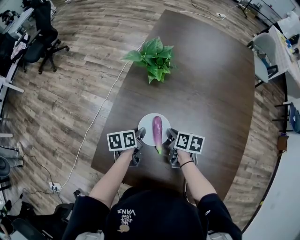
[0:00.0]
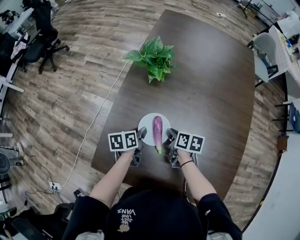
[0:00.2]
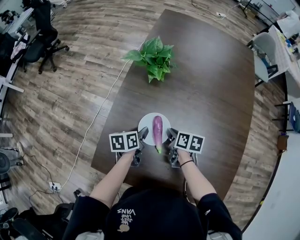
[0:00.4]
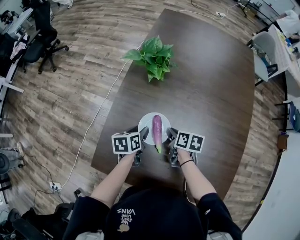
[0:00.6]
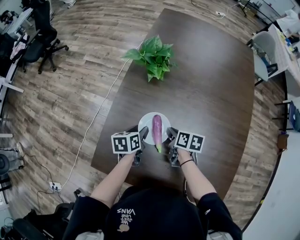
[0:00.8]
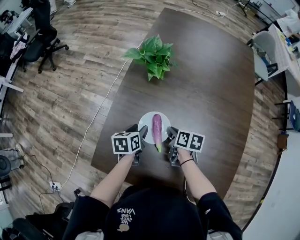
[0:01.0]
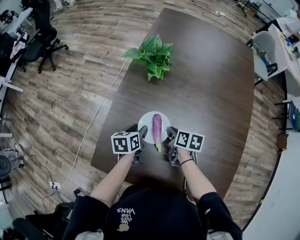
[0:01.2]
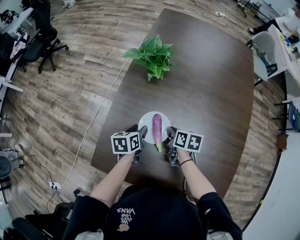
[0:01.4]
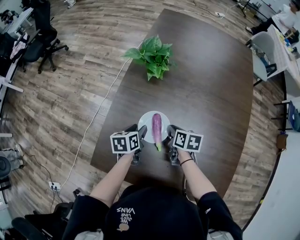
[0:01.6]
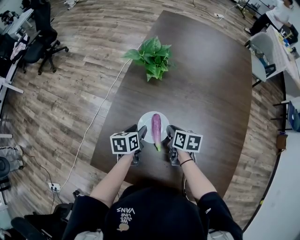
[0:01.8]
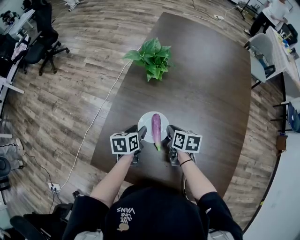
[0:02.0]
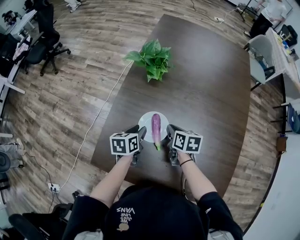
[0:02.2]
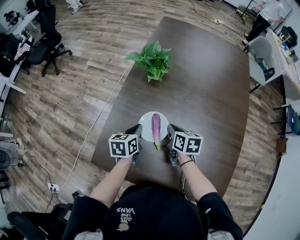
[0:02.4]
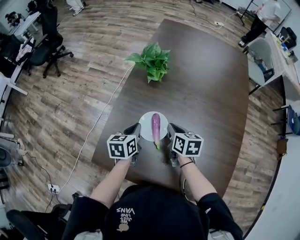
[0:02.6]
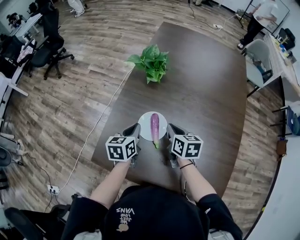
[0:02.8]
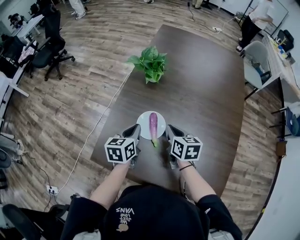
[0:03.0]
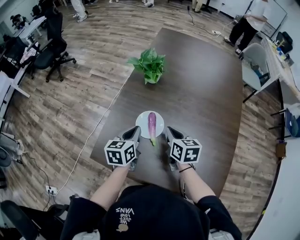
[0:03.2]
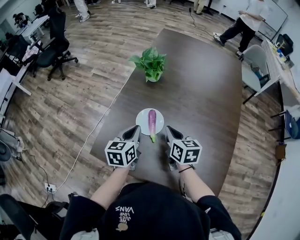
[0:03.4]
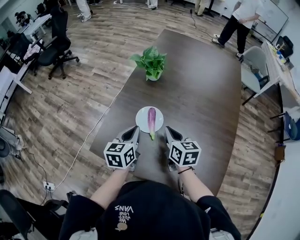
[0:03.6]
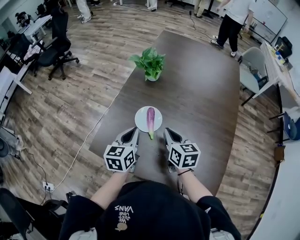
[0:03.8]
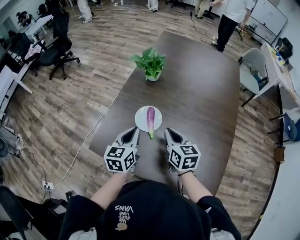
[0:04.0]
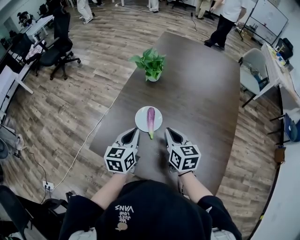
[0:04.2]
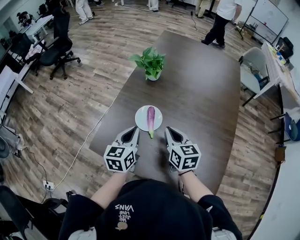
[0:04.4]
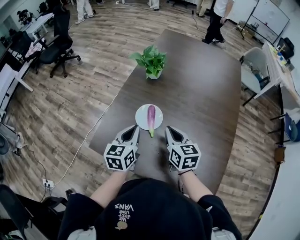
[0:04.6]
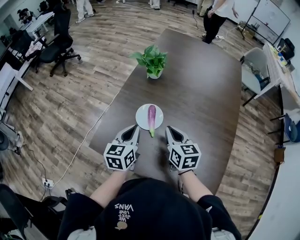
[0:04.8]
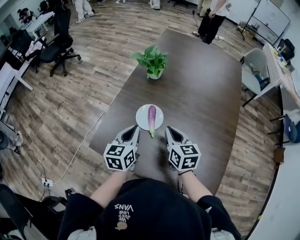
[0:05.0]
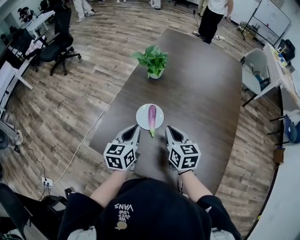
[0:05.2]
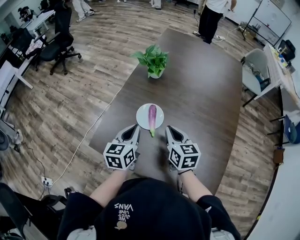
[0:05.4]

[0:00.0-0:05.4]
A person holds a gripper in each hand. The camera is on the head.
0:00.0 to 0:01.4: The left gripper opens.
0:01.4 to 0:02.8: The grippers both shift upward by some 10 cm. The right gripper changes its angle by some 20 degrees. Meanwhile the left gripper closes its fingers.
0:02.8 to 0:04.0: The grippers both shift backward and upward by roughly 10 cm.
0:04.0 to 0:05.4: Both grippers stay about where they are.

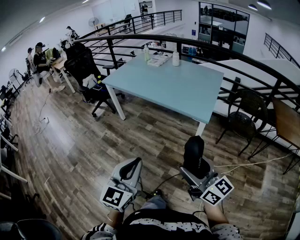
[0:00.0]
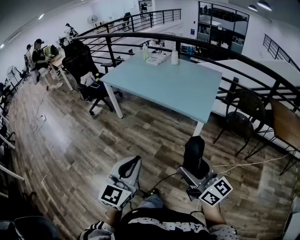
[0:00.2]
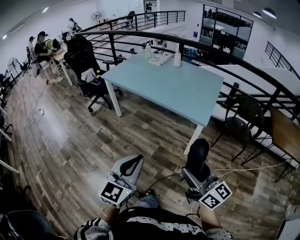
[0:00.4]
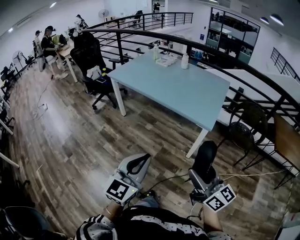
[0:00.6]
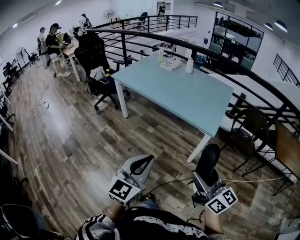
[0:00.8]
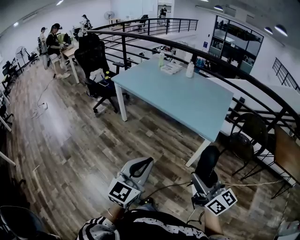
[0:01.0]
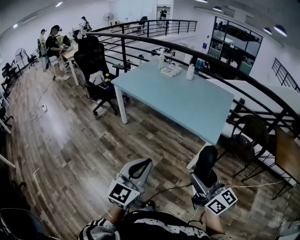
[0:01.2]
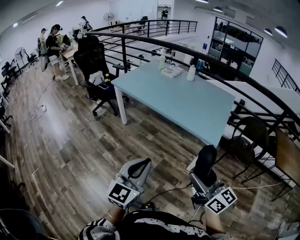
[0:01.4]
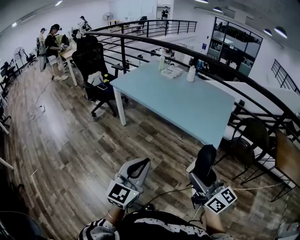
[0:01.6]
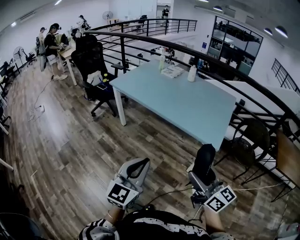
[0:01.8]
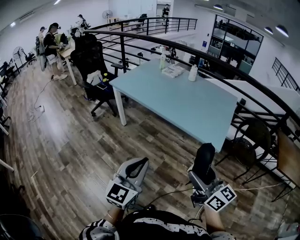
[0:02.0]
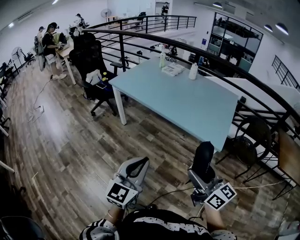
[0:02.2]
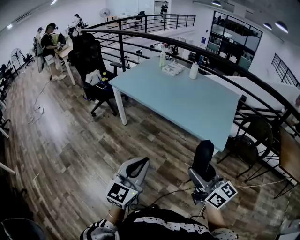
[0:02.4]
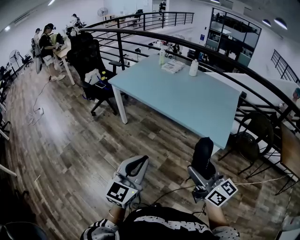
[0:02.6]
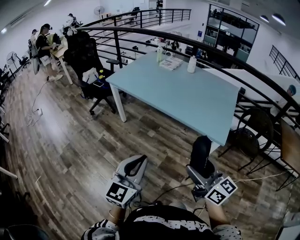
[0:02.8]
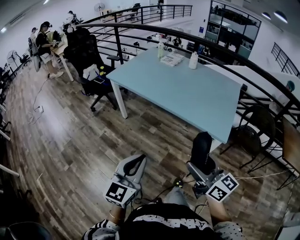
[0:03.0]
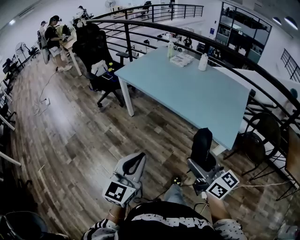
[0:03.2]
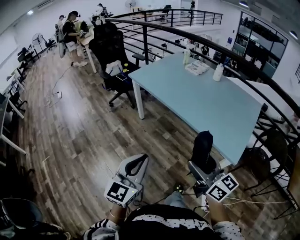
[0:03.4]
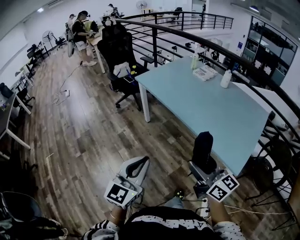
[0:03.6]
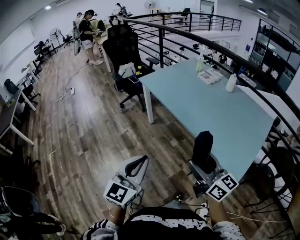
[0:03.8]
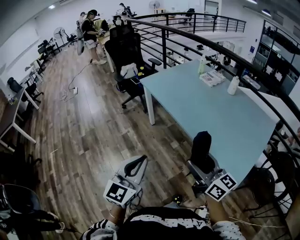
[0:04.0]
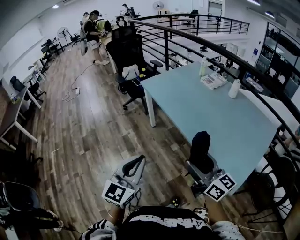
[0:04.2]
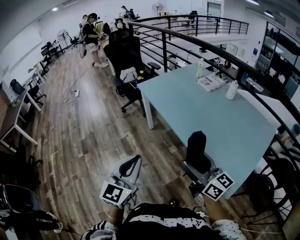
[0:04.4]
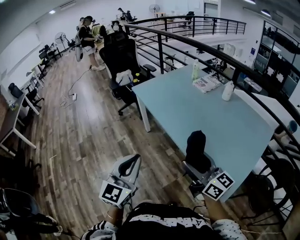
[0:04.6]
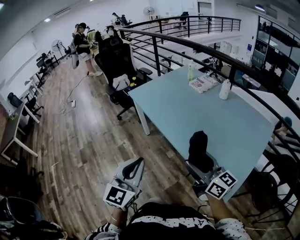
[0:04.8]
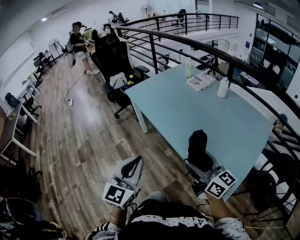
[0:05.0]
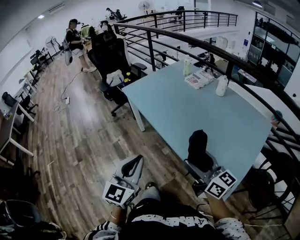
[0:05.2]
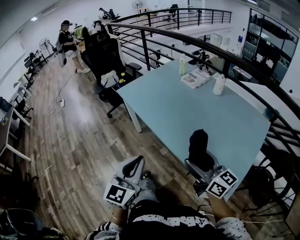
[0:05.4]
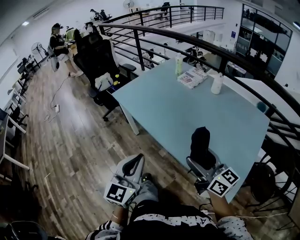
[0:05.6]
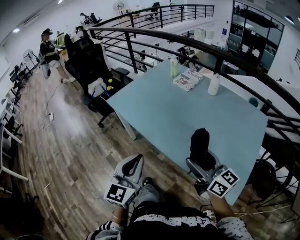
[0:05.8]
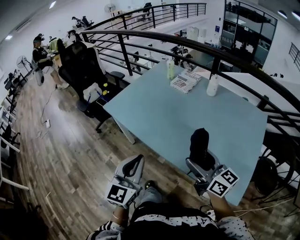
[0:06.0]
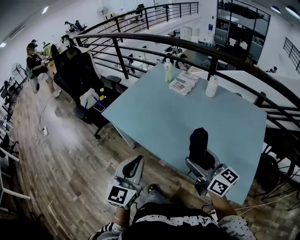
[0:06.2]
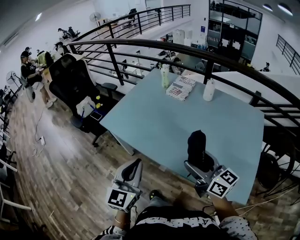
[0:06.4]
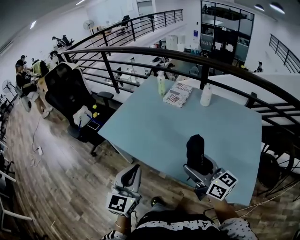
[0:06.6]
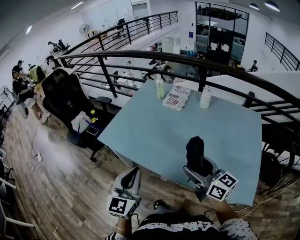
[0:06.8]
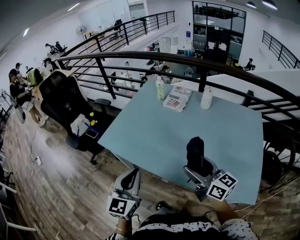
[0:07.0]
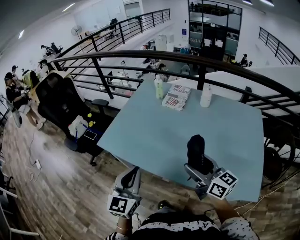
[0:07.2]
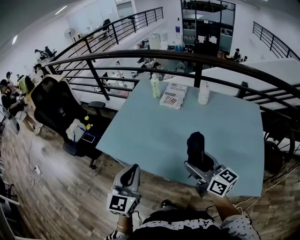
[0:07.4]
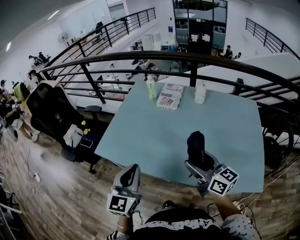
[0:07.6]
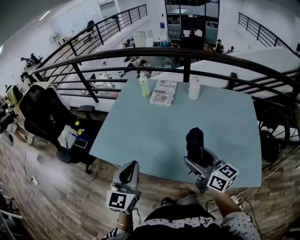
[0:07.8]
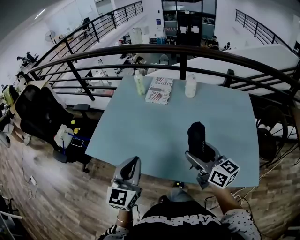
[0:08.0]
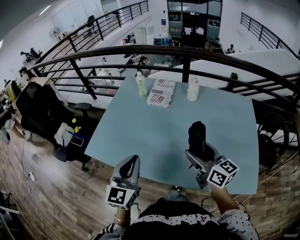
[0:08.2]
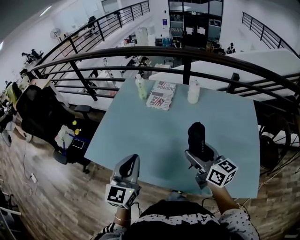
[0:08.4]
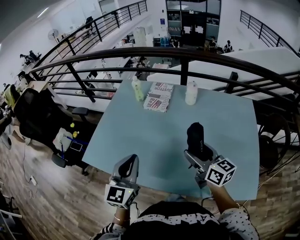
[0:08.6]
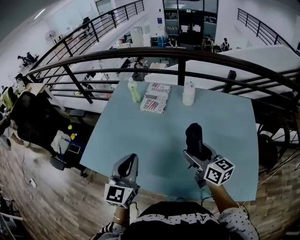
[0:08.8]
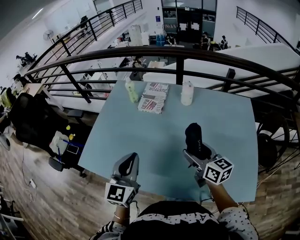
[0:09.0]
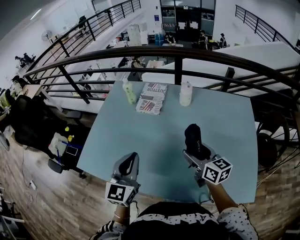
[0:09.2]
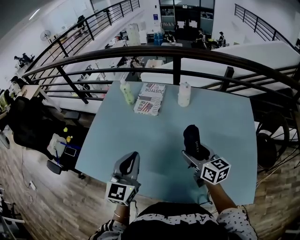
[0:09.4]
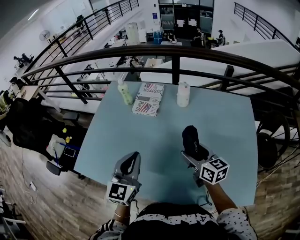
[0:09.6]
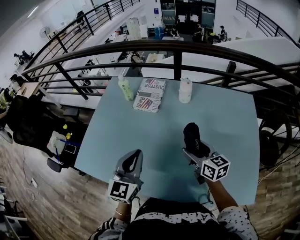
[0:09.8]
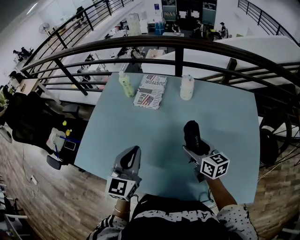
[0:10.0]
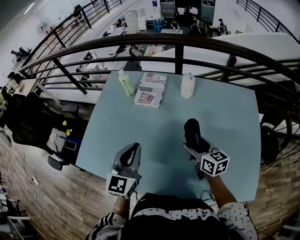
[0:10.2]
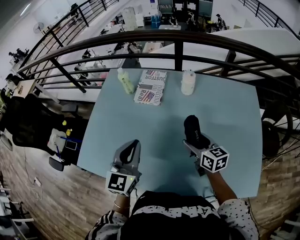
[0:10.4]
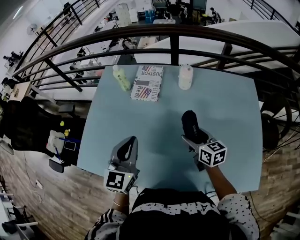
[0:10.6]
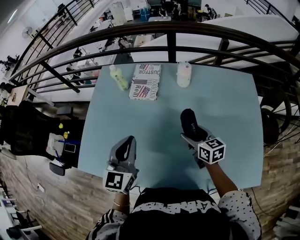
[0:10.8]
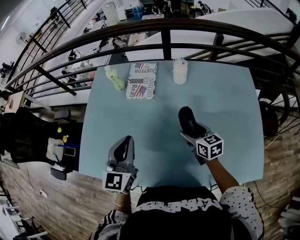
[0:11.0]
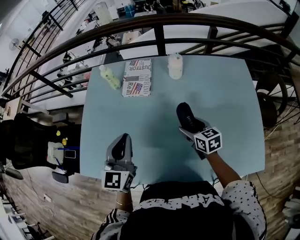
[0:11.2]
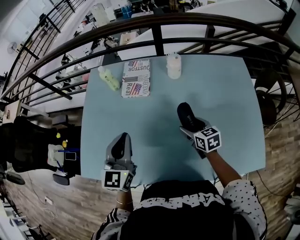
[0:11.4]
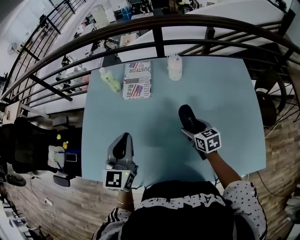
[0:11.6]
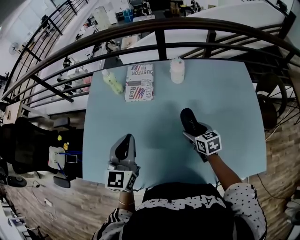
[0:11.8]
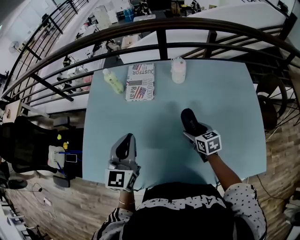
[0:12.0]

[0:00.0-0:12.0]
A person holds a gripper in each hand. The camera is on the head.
0:00.0 to 0:01.6: The two grippers go approximately 15 cm forward and to the left.
0:01.6 to 0:03.0: The grippers both shift forward and to the left by approximately 10 cm.
0:03.0 to 0:04.4: The left gripper ends up some 20 cm from where it was, and turns by roughly 30 degrees, while the right gripper moves approximately 25 cm, and changes its angle by some 30 degrees.
0:04.4 to 0:06.0: The two grippers go roughly 25 cm forward.
0:06.0 to 0:07.6: Both grippers travel together forward and to the left, roughly 20 cm.
0:07.6 to 0:09.0: The left gripper shifts about 20 cm forward and to the right. The right gripper goes roughly 20 cm forward, to the right and downward.
0:09.0 to 0:10.4: The right gripper is displaced downward and forward by some 10 cm; the left gripper heads forward, covering some 10 cm.
0:10.4 to 0:12.0: The left gripper heads forward, covering approximately 5 cm, while the right gripper is displaced downward by roughly 10 cm, and turns by some 20 degrees.

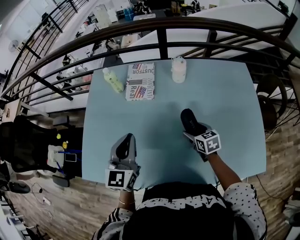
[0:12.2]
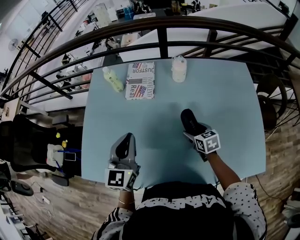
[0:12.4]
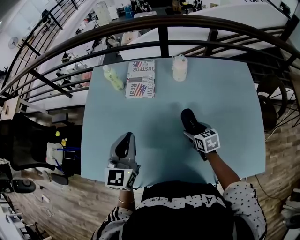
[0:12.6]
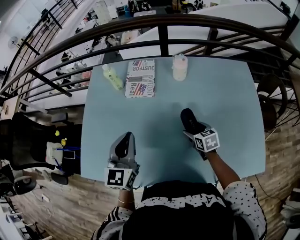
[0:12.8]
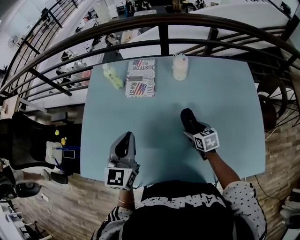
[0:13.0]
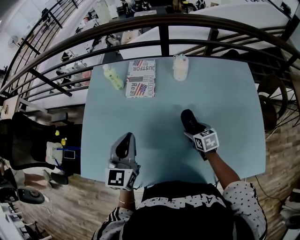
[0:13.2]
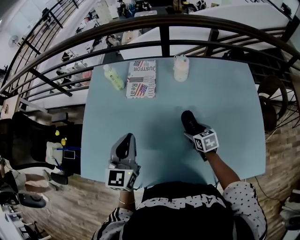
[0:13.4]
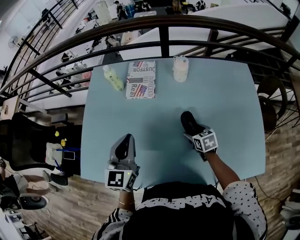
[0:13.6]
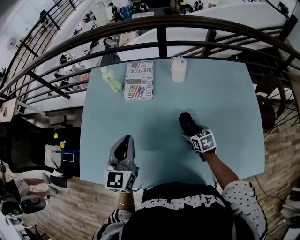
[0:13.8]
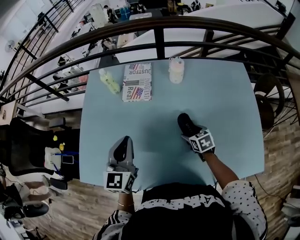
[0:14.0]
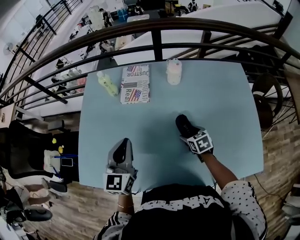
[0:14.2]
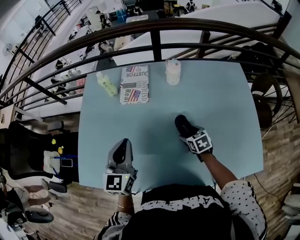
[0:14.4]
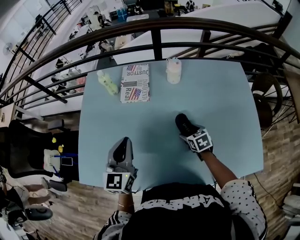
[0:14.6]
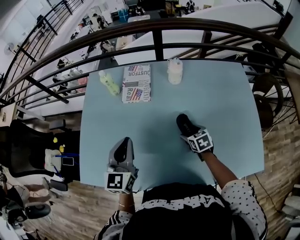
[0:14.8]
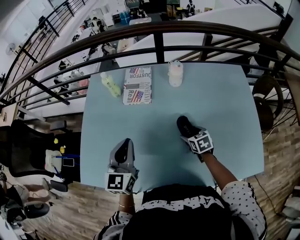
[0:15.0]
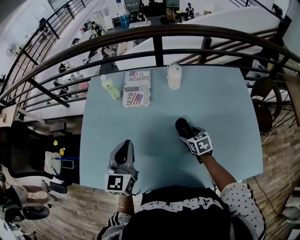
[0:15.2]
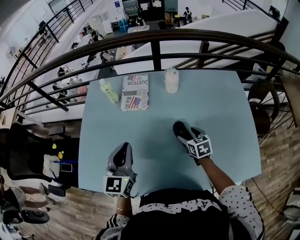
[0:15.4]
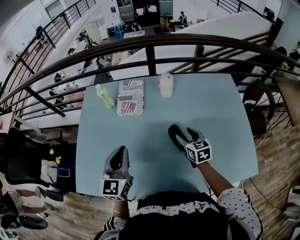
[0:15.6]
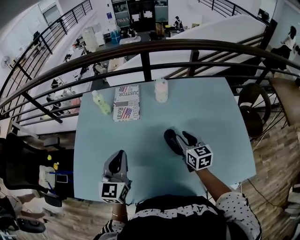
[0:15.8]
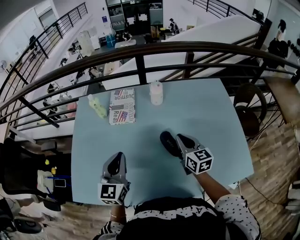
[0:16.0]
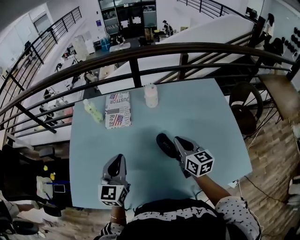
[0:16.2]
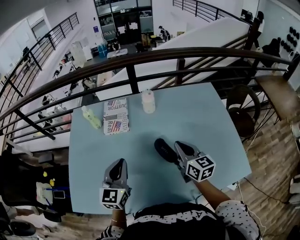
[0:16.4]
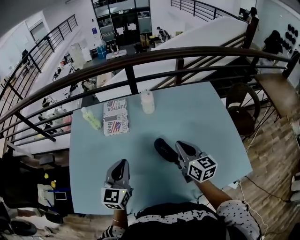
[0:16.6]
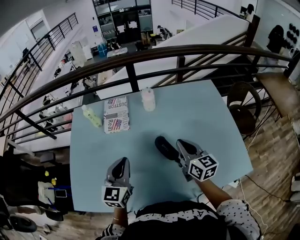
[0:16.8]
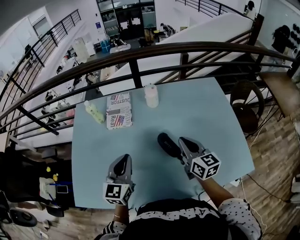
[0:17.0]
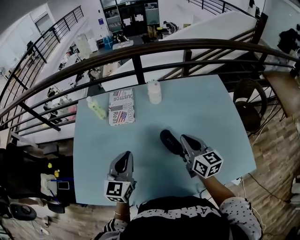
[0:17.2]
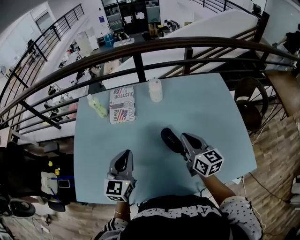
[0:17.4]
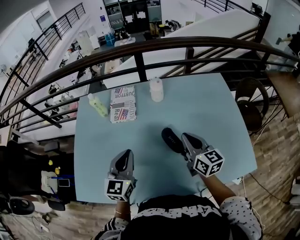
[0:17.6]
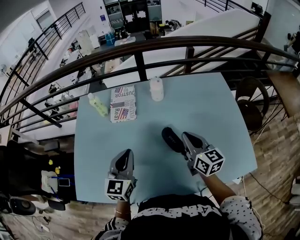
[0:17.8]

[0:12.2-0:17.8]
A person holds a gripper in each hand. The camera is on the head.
0:12.2 to 0:13.6: The grippers move only a little.
0:13.6 to 0:15.0: Neither gripper changes place.
0:15.0 to 0:16.4: The left gripper shifts about 5 cm to the right. Meanwhile the right gripper shifts some 20 cm upward, tilts its fingers approximately 40 degrees upward, and closes.
0:16.4 to 0:17.8: The grippers move only a little.

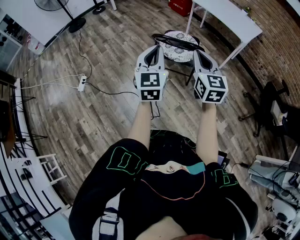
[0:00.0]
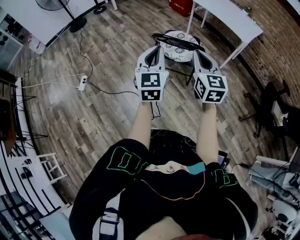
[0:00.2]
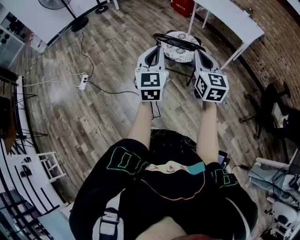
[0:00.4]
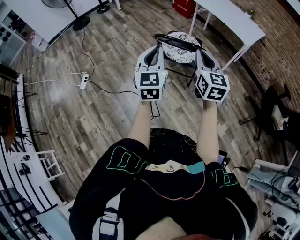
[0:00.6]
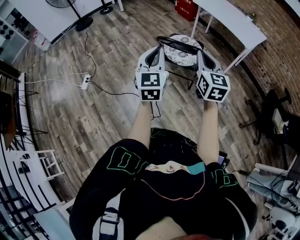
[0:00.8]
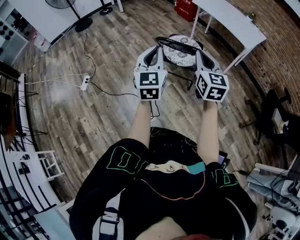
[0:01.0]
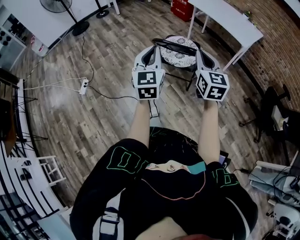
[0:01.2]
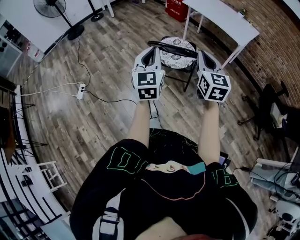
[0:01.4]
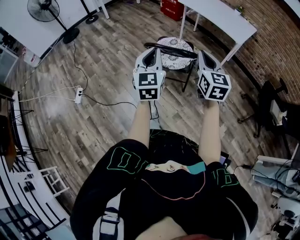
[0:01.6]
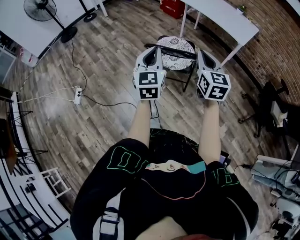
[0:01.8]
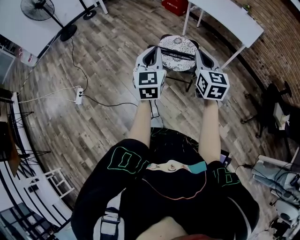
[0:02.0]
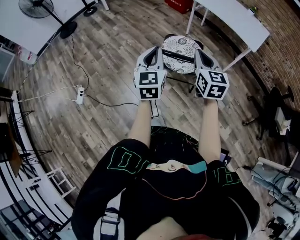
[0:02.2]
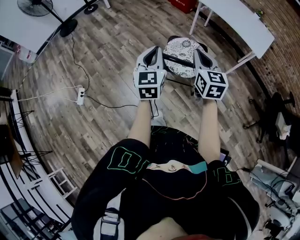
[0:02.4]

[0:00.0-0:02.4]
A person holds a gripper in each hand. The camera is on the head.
0:00.0 to 0:01.2: The grippers move only a little.
0:01.2 to 0:02.4: Both grippers travel together forward, some 25 cm.
